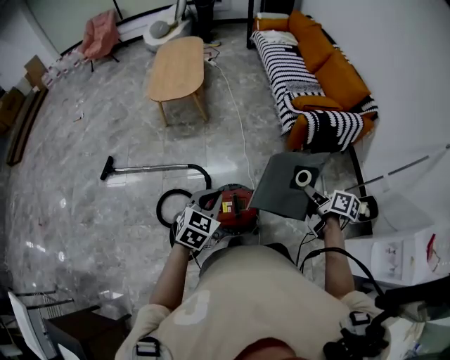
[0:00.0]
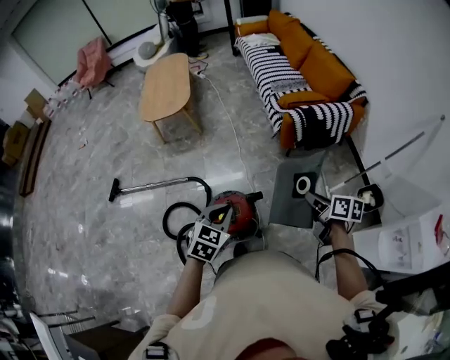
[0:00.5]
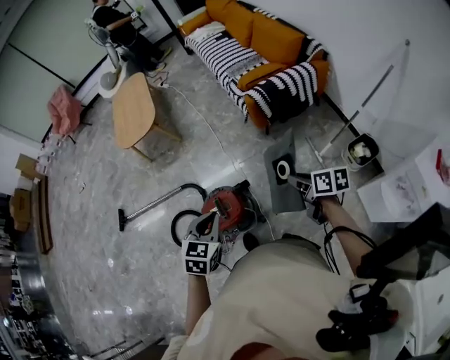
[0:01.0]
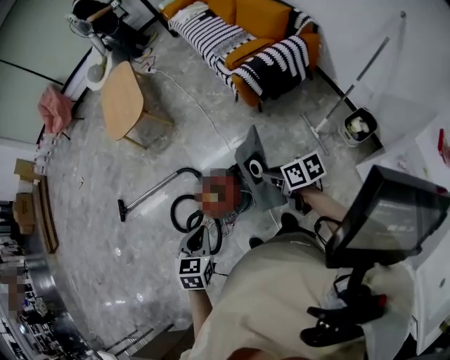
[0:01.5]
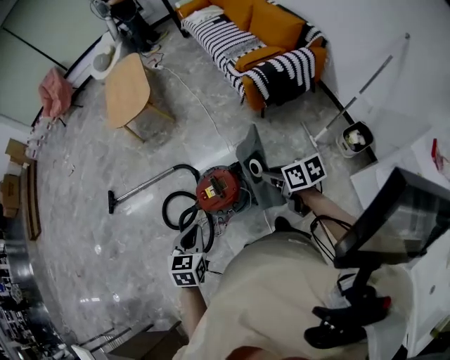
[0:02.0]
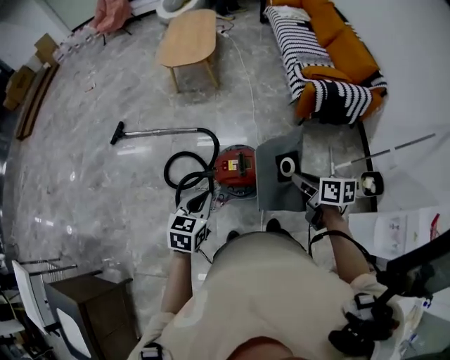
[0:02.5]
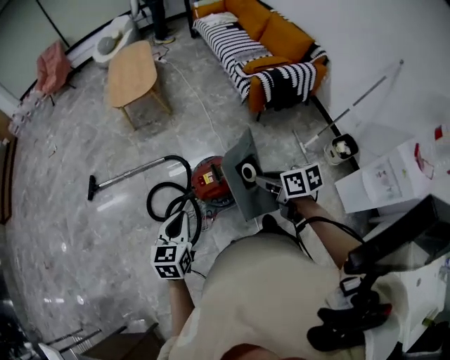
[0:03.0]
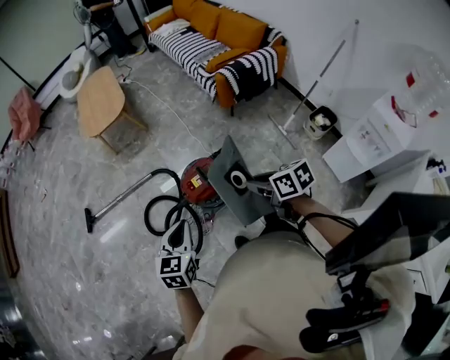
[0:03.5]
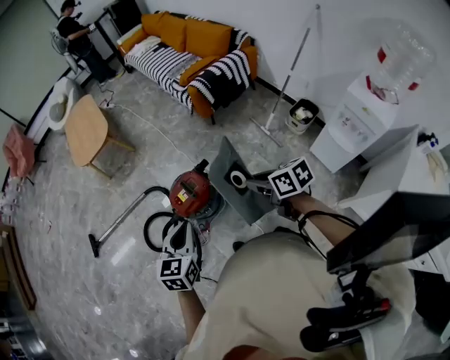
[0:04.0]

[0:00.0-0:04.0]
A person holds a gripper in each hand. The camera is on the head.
0:00.0 to 0:02.0: The two grippers go about 15 cm backward. The right gripper reaches approximately 10 cm to the right, then returns, and turns by roughly 30 degrees.
0:02.0 to 0:04.0: The right gripper heads backward, covering approximately 15 cm. Meanwhile the left gripper moves backward and upward, some 10 cm, travels to the left and back again, approximately 15 cm each way, and changes its angle by some 20 degrees.

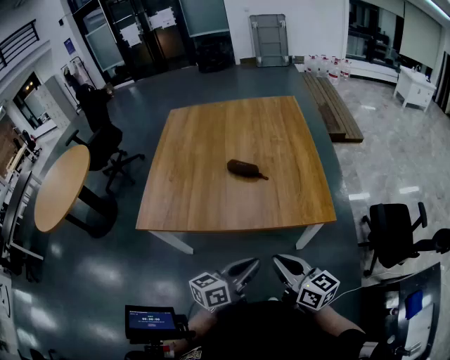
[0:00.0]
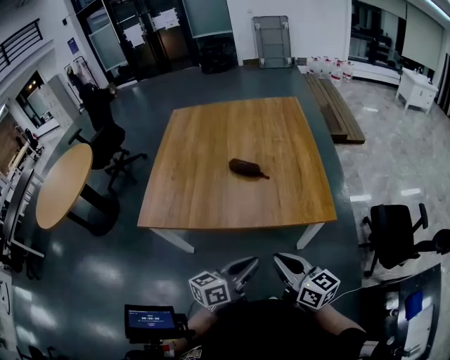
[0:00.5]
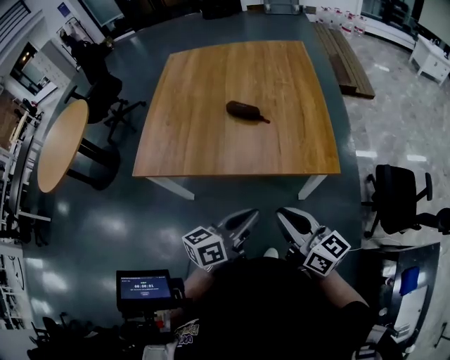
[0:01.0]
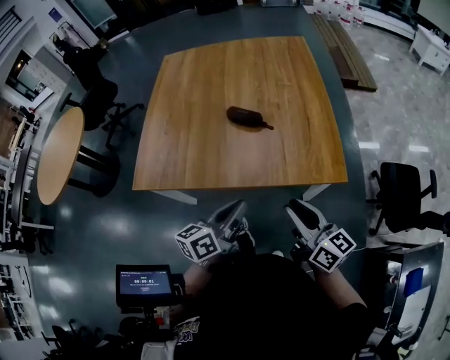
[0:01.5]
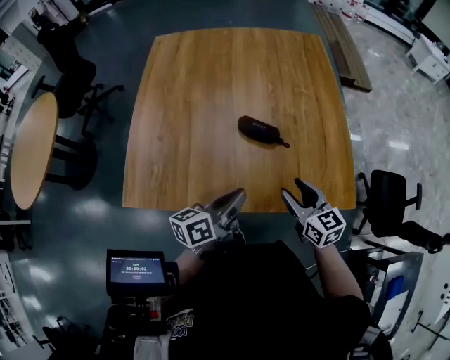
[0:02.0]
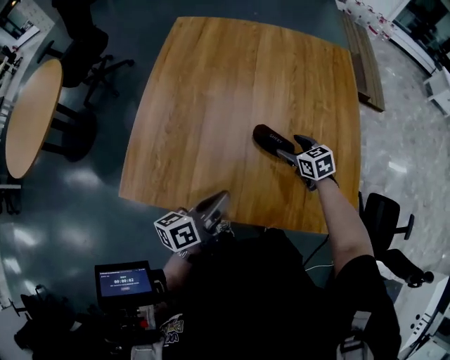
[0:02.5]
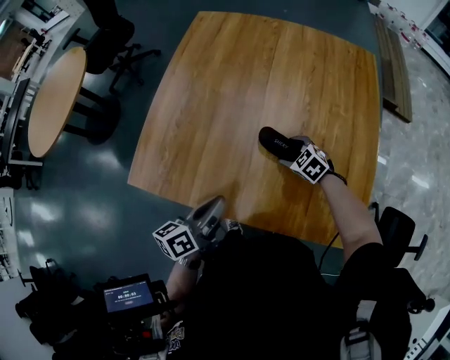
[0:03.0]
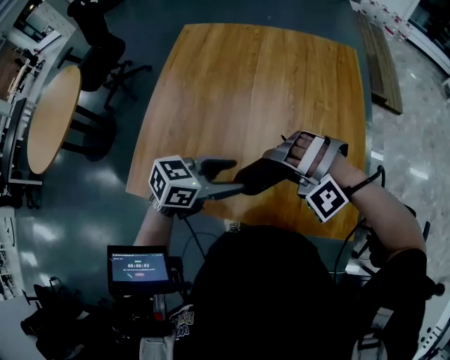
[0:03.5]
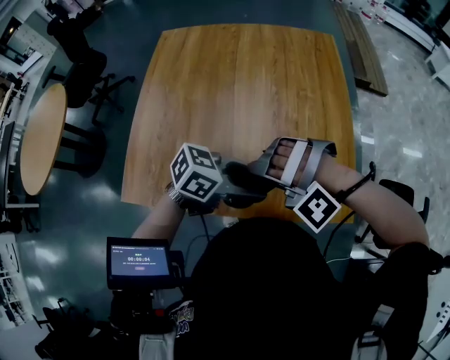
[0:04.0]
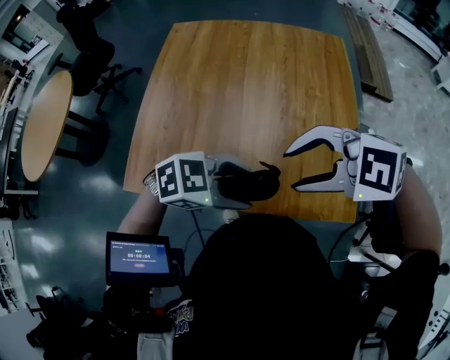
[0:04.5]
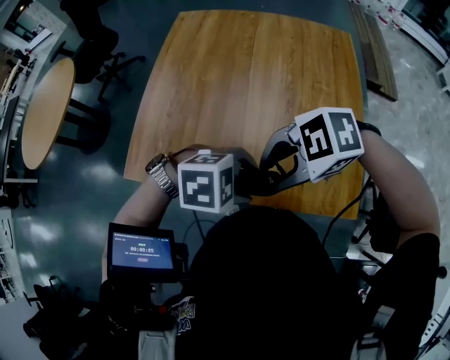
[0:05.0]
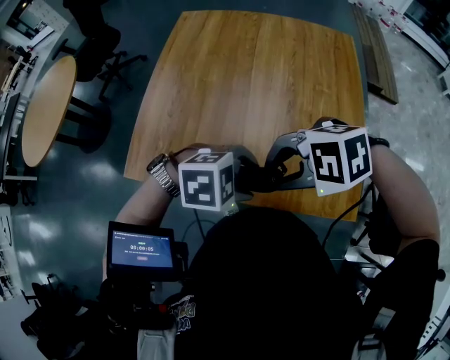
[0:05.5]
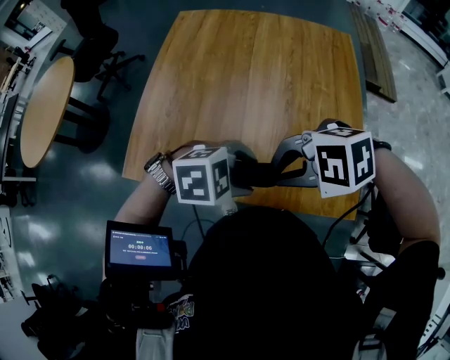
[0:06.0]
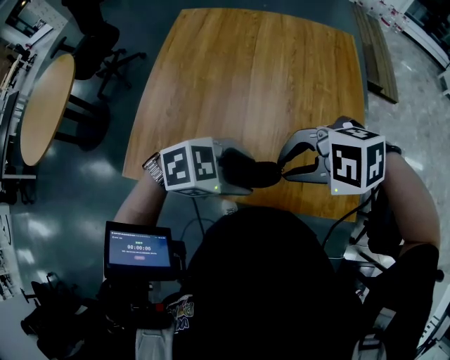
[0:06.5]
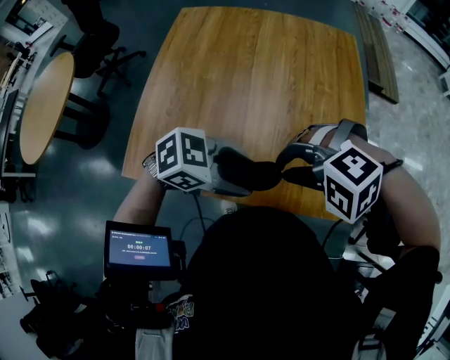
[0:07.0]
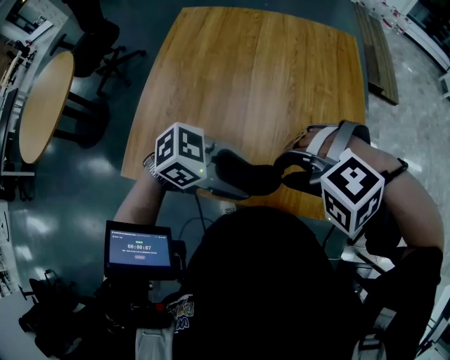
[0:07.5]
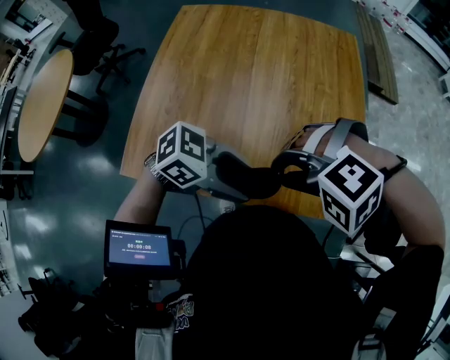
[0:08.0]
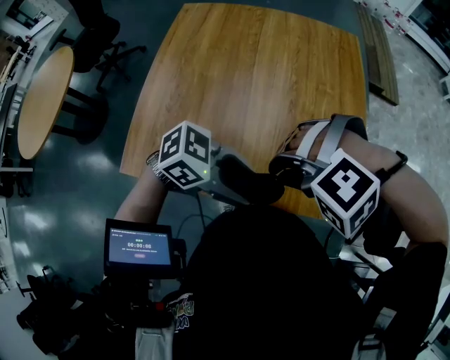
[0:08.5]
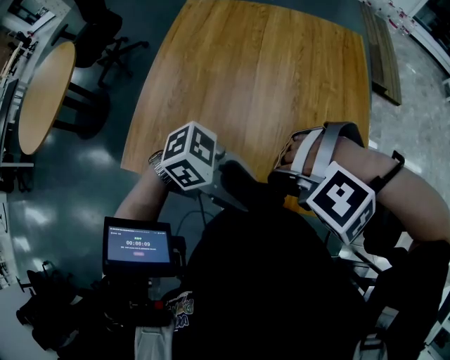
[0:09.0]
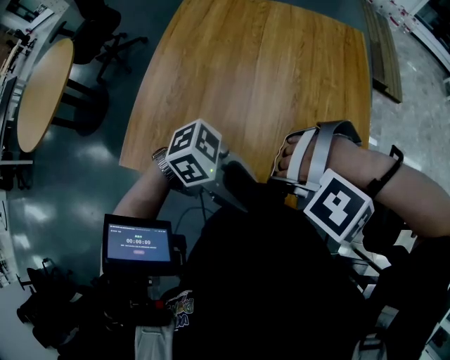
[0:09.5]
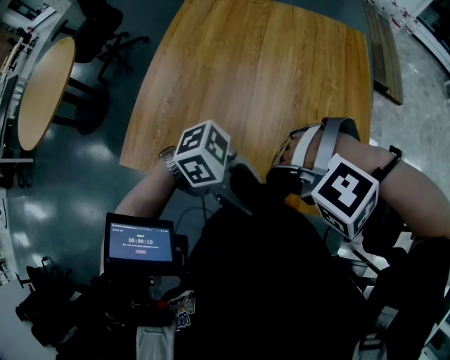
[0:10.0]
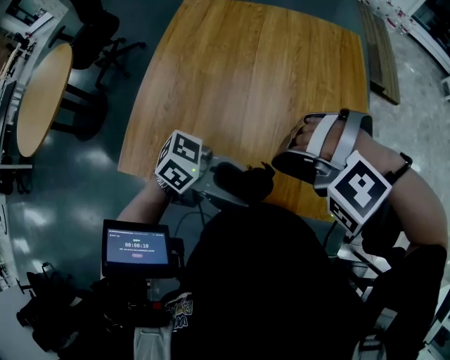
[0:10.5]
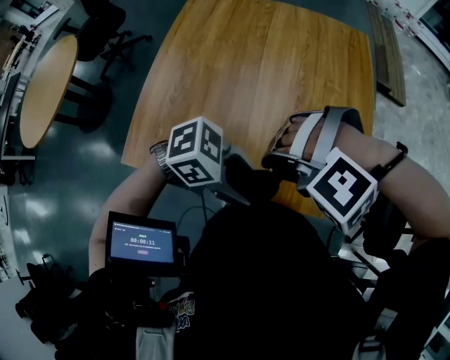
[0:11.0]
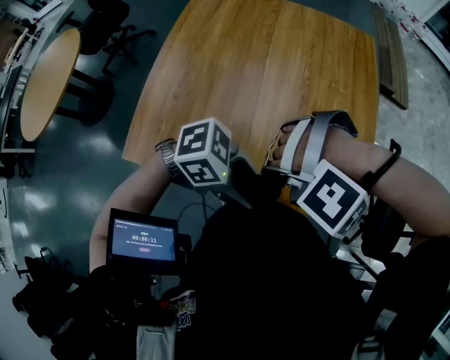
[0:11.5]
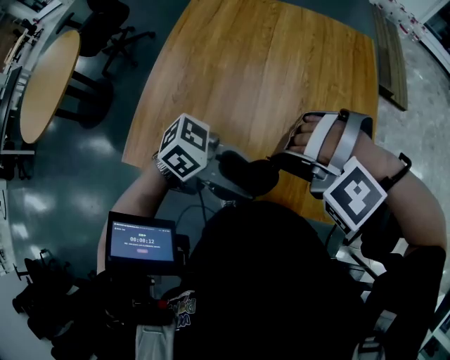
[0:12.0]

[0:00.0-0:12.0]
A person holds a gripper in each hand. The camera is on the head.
0:00.0 to 0:02.0: The right gripper travels forward by some 20 cm, swivels approximately 20 degrees, and opens. Meanwhile the left gripper moves forward and to the left, about 25 cm.
0:02.0 to 0:04.0: The right gripper moves about 15 cm downward and comes back, rotates around the line of its fingers by about 120 degrees, counterclockwise from behind, and opens. Meanwhile the left gripper shifts by approximately 10 cm, turns by roughly 50 degrees, and opens.
0:04.0 to 0:06.0: The right gripper travels upward by some 5 cm, rotates about 60 degrees, and closes its fingers. The left gripper tilts its fingers about 30 degrees downward.
0:06.0 to 0:08.0: The left gripper tilts its fingers approximately 30 degrees upward; the right gripper turns by approximately 30 degrees.
0:10.0 to 0:12.0: The right gripper changes place by roughly 5 cm.

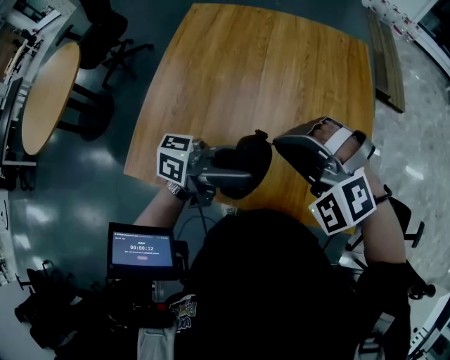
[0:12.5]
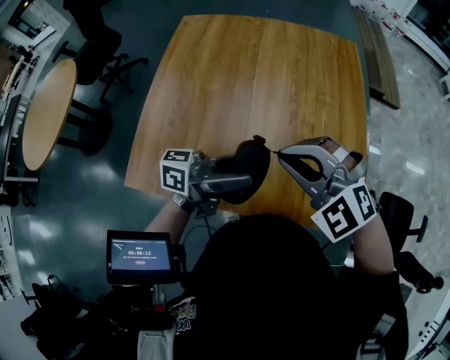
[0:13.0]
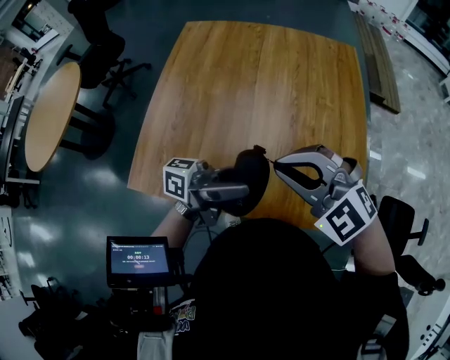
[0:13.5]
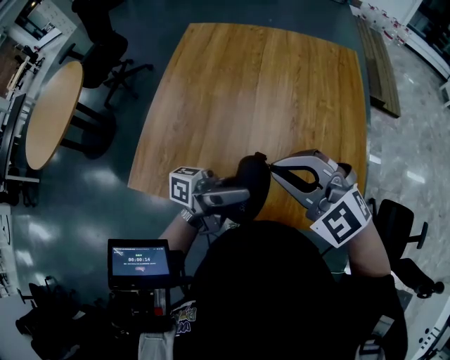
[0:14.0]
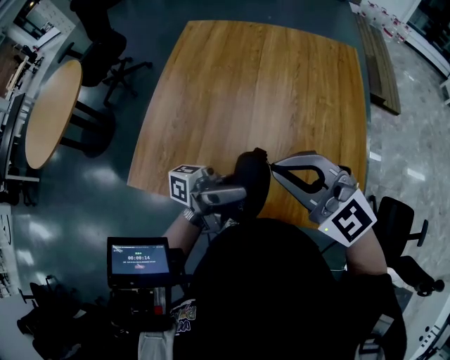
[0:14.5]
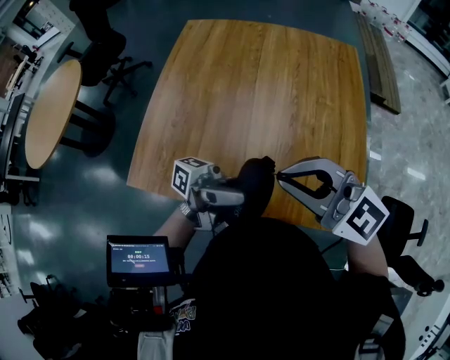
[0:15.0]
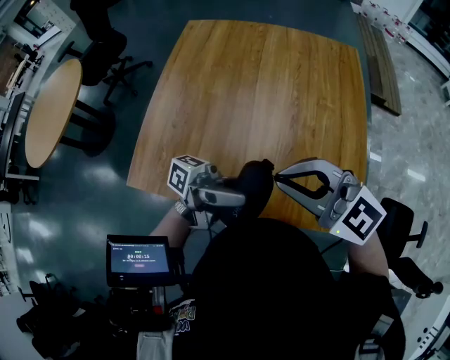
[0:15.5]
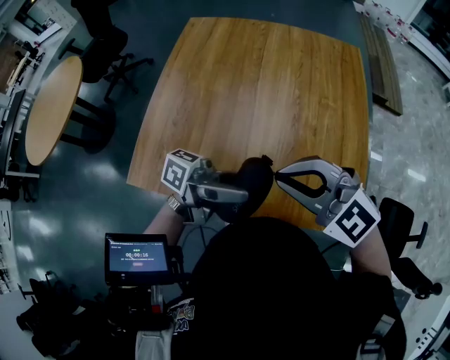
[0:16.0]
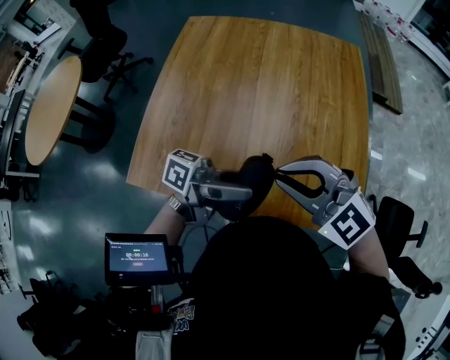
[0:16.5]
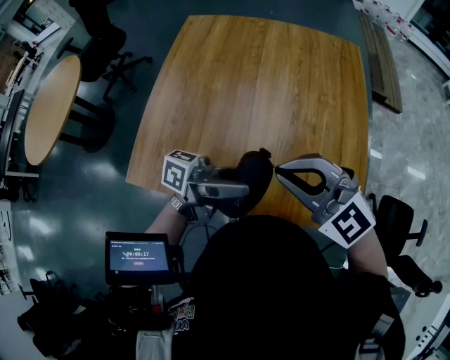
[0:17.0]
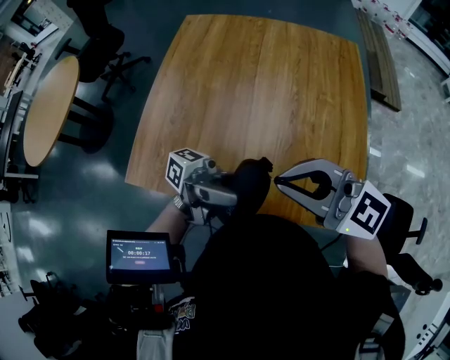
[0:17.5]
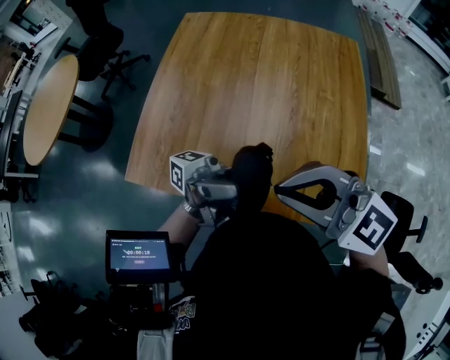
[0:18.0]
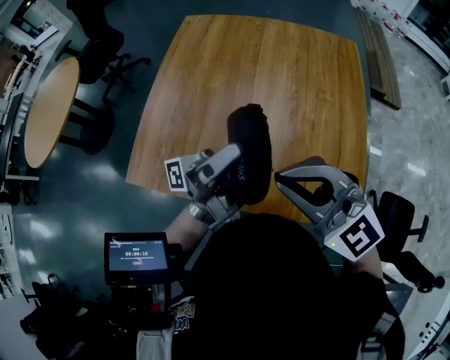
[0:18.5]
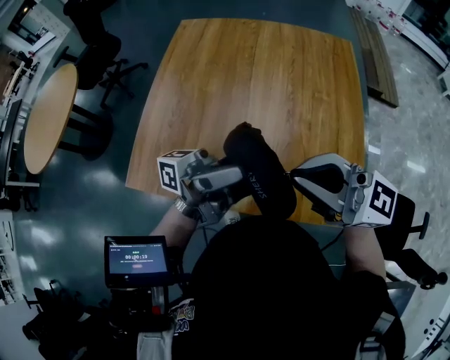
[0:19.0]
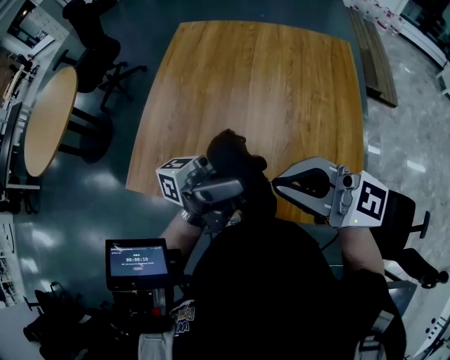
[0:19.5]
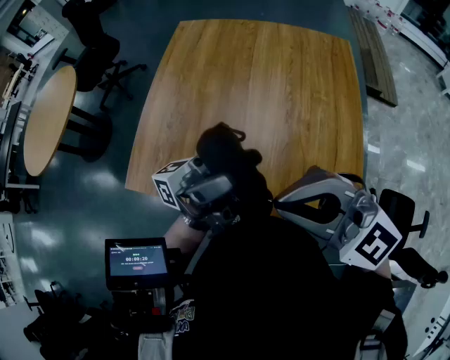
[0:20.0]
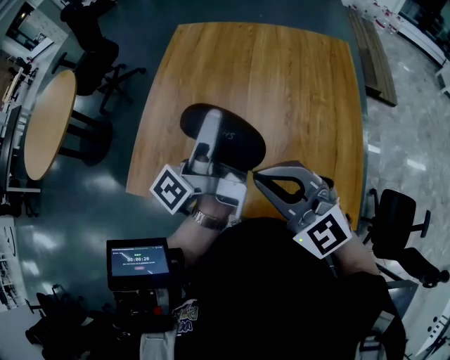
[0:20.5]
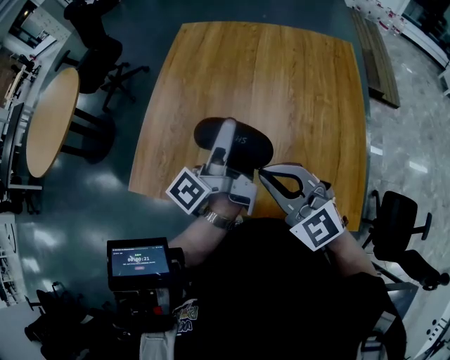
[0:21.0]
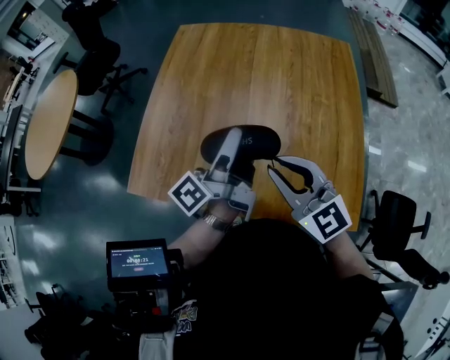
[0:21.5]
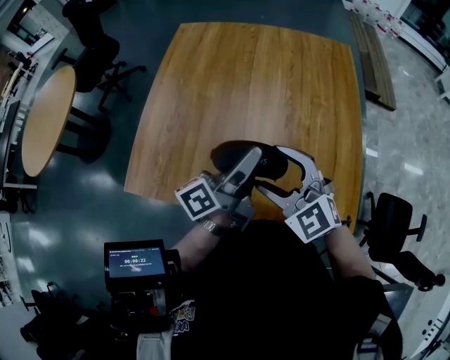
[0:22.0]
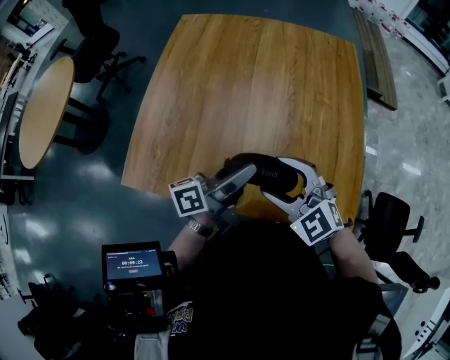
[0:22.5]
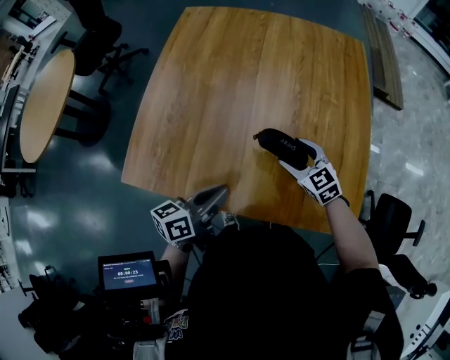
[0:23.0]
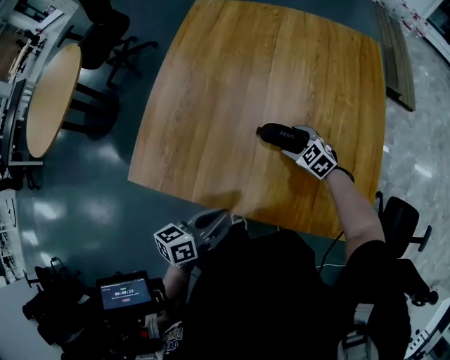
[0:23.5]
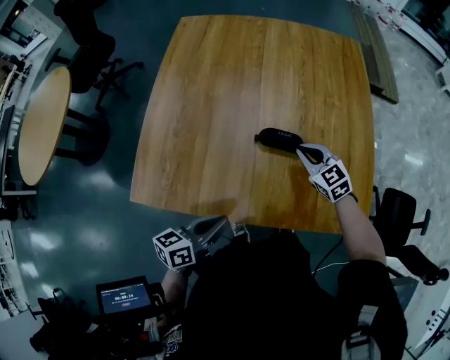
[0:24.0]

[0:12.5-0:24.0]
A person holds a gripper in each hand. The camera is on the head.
0:12.5 to 0:14.5: The left gripper changes its angle by some 30 degrees. Meanwhile the right gripper changes place by roughly 5 cm, and turns by some 40 degrees.
0:14.5 to 0:16.5: The left gripper turns by approximately 20 degrees.
0:16.5 to 0:18.5: The left gripper heads upward, covering approximately 10 cm, and swivels approximately 40 degrees. Meanwhile the right gripper is displaced upward by some 5 cm.
0:18.5 to 0:20.0: The left gripper changes place by about 5 cm.
0:20.0 to 0:22.0: Both grippers move downward, roughly 15 cm. The right gripper turns by approximately 30 degrees, and opens, while the left gripper points its fingers about 40 degrees further downward.
0:22.0 to 0:24.0: The right gripper moves downward and forward, some 20 cm, swivels roughly 30 degrees, and closes up, while the left gripper heads downward, backward and to the left, covering some 25 cm, changes its angle by approximately 40 degrees, and closes up.
